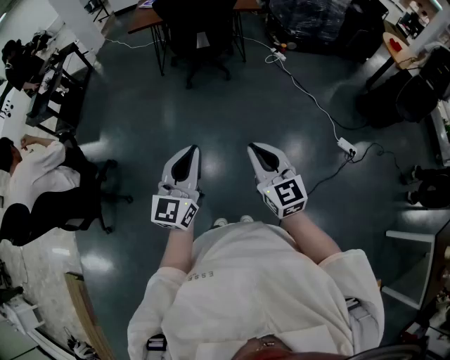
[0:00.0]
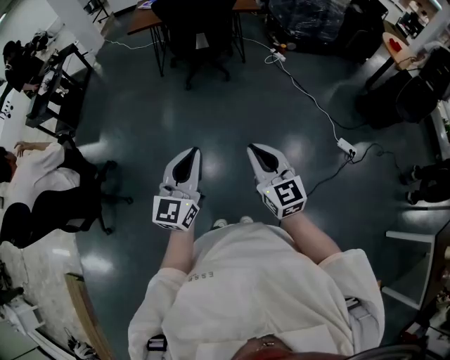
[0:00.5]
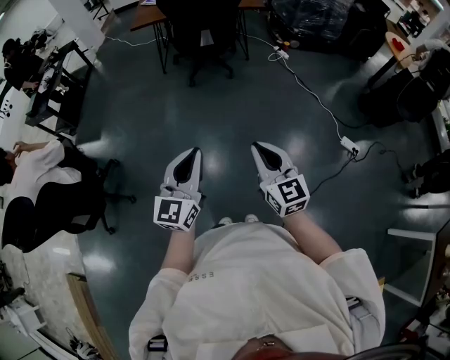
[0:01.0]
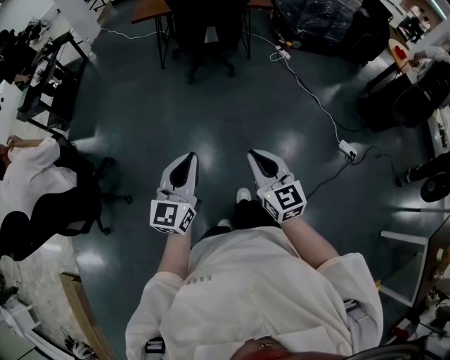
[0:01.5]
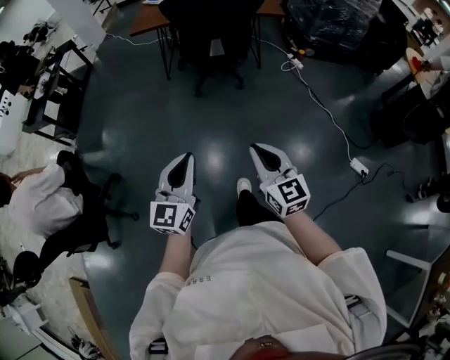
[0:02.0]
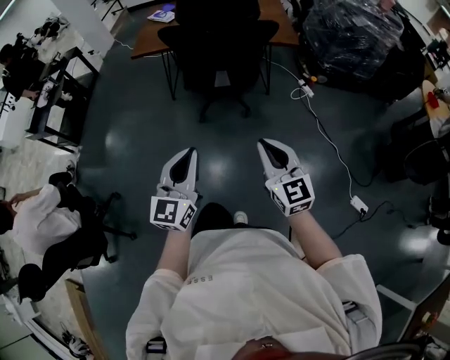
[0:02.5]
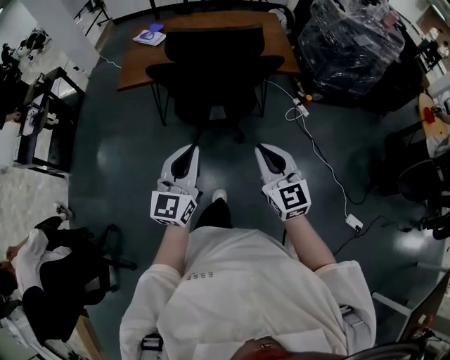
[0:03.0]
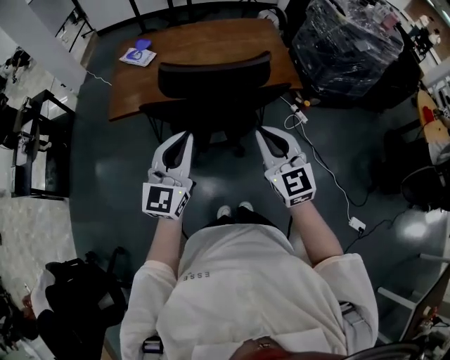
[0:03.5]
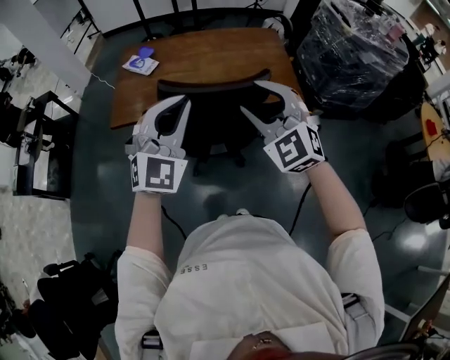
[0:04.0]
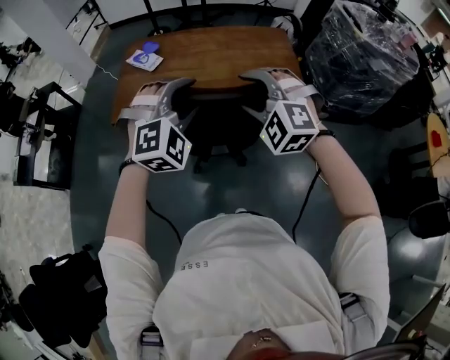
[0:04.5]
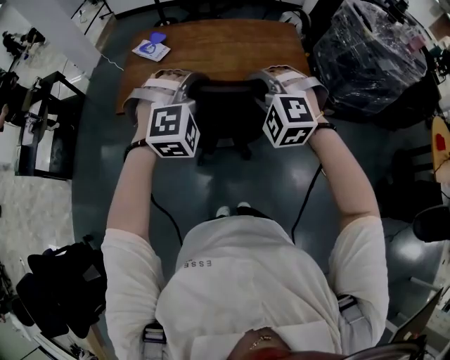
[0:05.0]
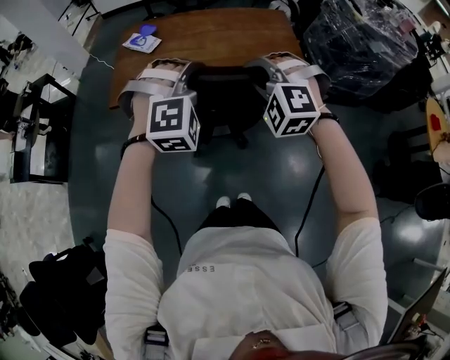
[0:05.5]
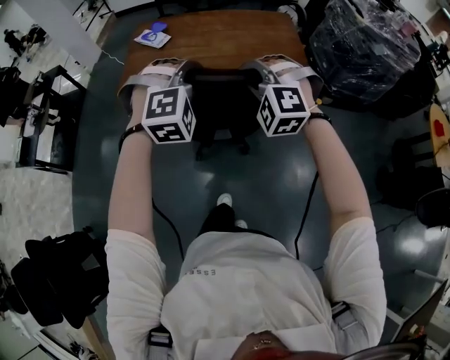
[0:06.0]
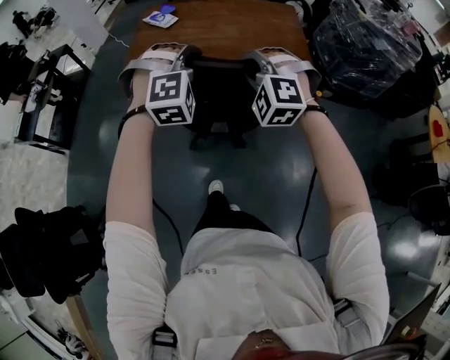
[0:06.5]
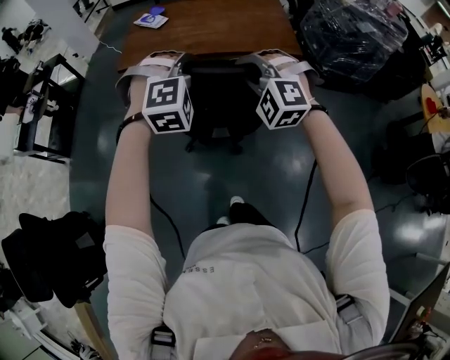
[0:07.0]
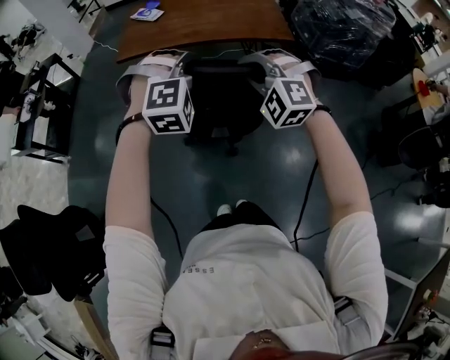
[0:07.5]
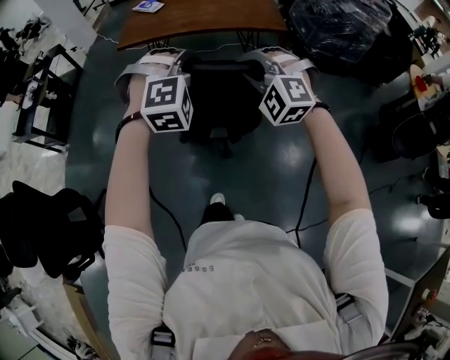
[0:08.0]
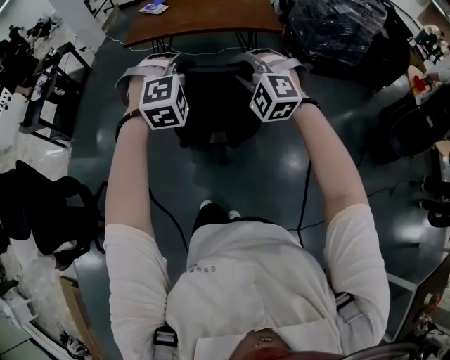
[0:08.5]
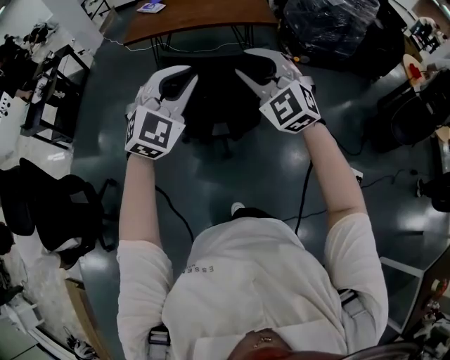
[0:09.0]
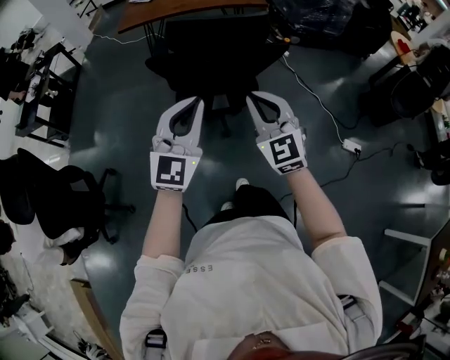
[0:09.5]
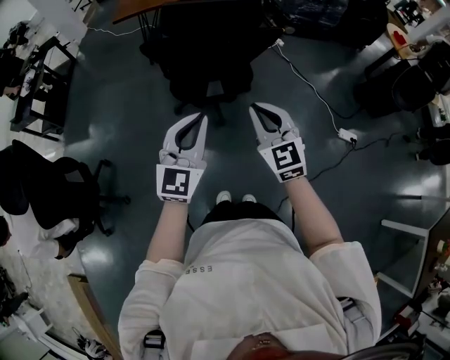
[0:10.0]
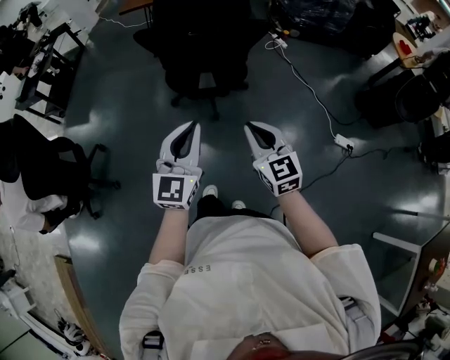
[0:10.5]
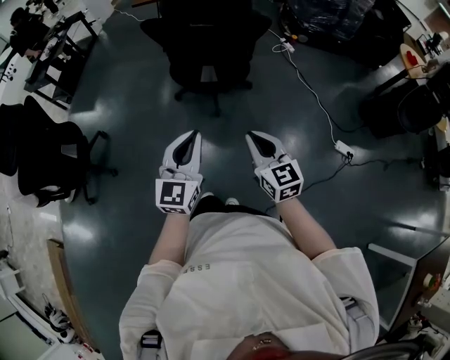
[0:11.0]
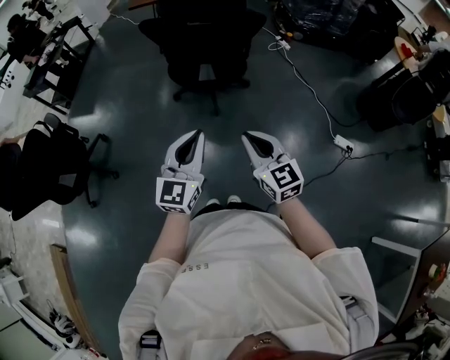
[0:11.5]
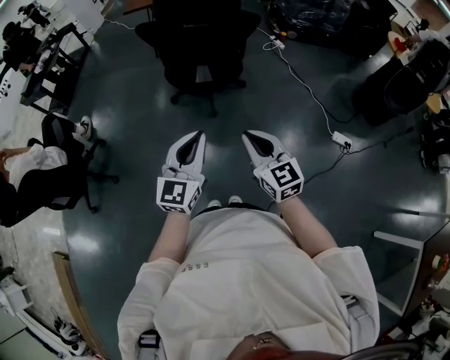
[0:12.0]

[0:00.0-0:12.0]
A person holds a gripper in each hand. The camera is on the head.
0:00.0 to 0:02.0: The two grippers go some 20 cm forward.
0:02.0 to 0:04.0: The two grippers travel together, forward, some 70 cm. The left gripper rolls clockwise, seen from behind, by approximately 50 degrees; the right gripper rolls counterclockwise, seen from behind, by some 50 degrees, and opens up.
0:04.0 to 0:06.0: The grippers both shift downward by some 5 cm. The right gripper rotates roughly 40 degrees, and closes. Meanwhile the left gripper points its fingers approximately 30 degrees further downward, and opens and closes again.
0:06.0 to 0:08.0: The grippers both shift backward by some 30 cm.
0:08.0 to 0:10.0: The grippers both shift backward by approximately 40 cm. The left gripper rotates around the line of its fingers by roughly 60 degrees, counterclockwise from behind. Meanwhile the right gripper rotates around the line of its fingers by about 60 degrees, clockwise from behind, and opens and closes again.
0:10.0 to 0:12.0: The right gripper goes about 20 cm backward, and changes its angle by some 20 degrees, while the left gripper travels backward and to the right by about 20 cm.

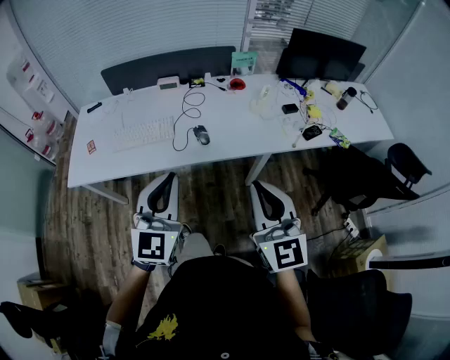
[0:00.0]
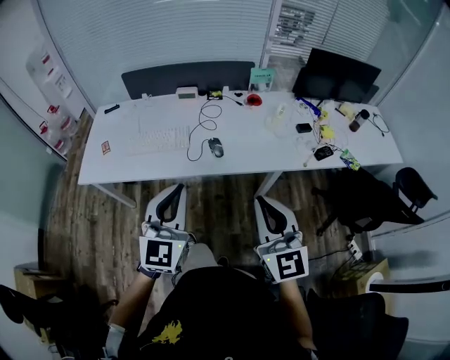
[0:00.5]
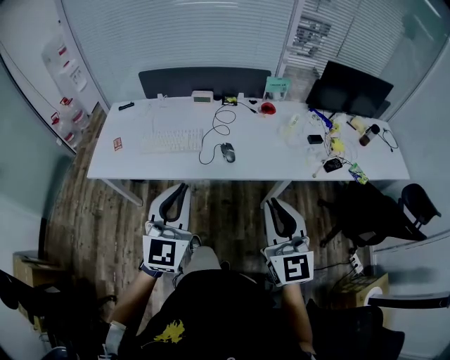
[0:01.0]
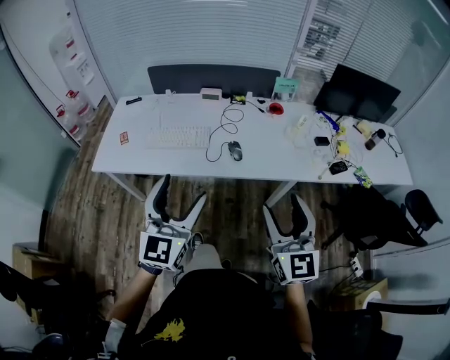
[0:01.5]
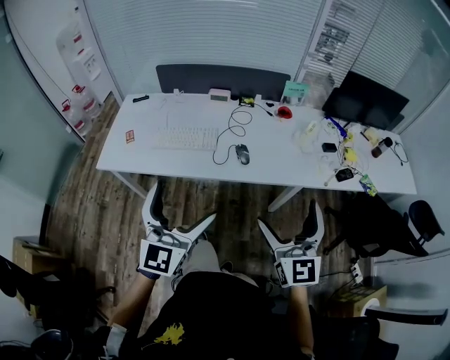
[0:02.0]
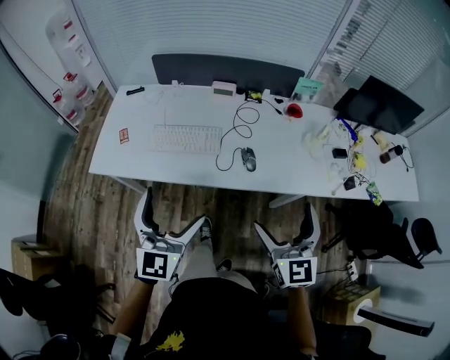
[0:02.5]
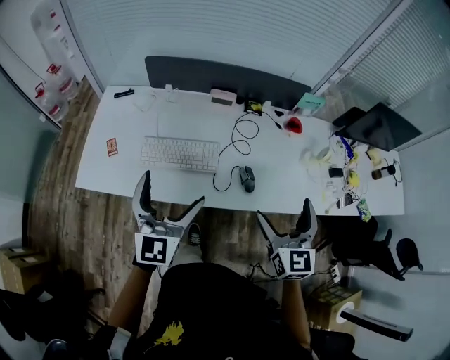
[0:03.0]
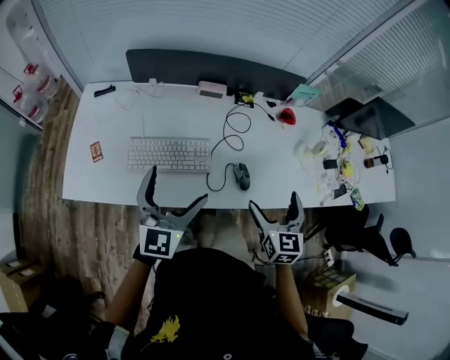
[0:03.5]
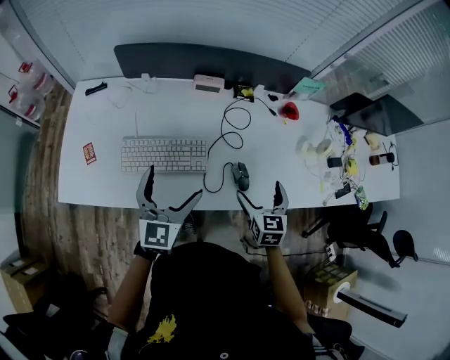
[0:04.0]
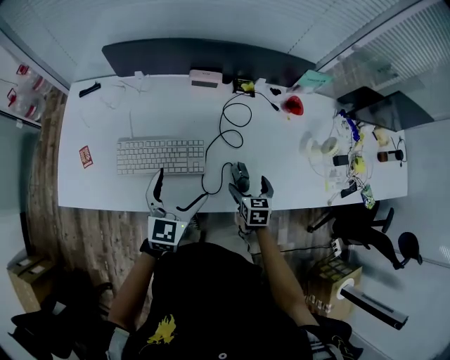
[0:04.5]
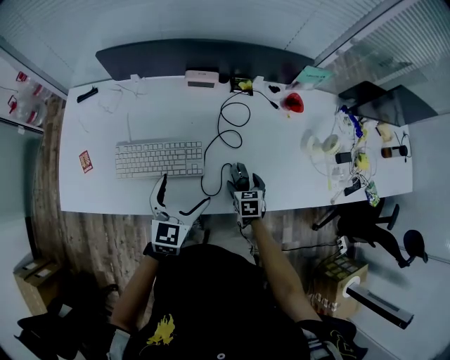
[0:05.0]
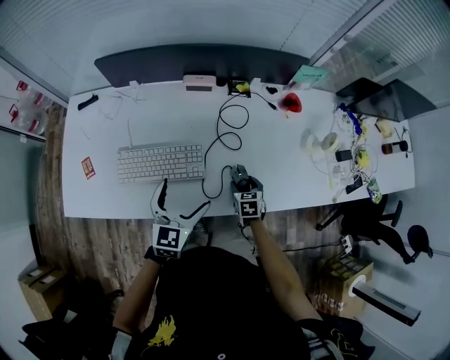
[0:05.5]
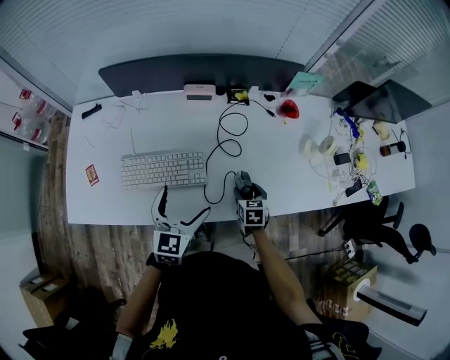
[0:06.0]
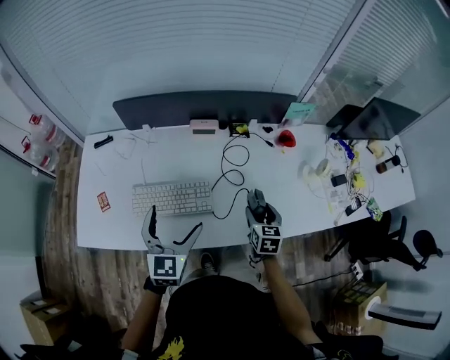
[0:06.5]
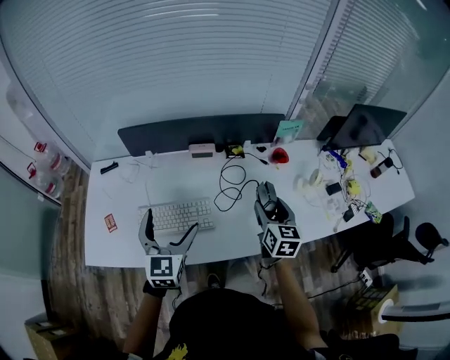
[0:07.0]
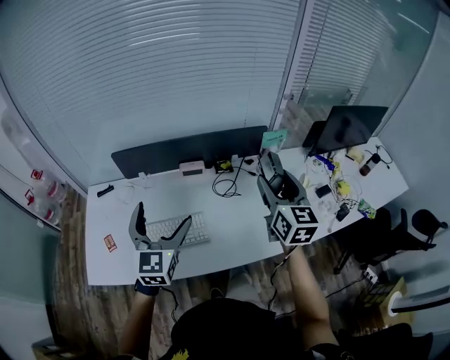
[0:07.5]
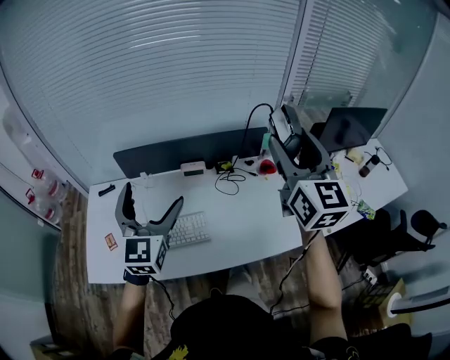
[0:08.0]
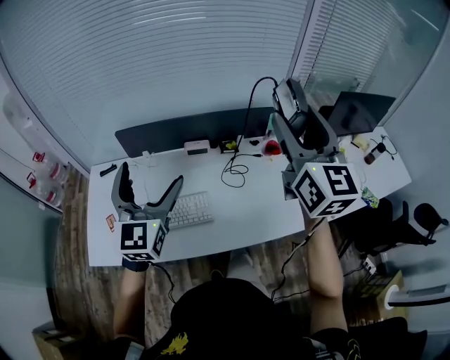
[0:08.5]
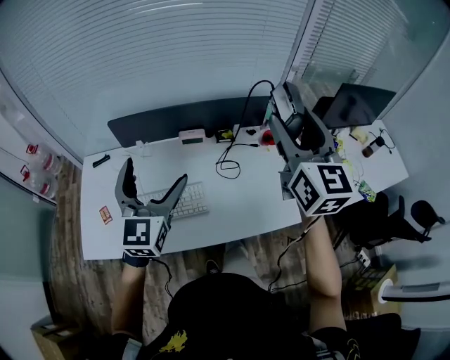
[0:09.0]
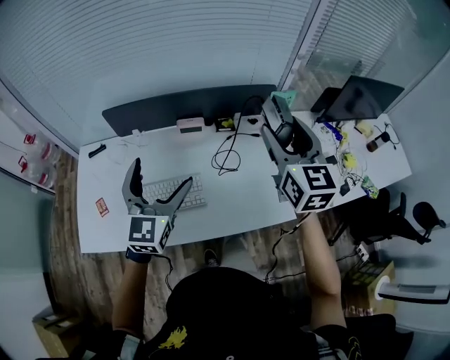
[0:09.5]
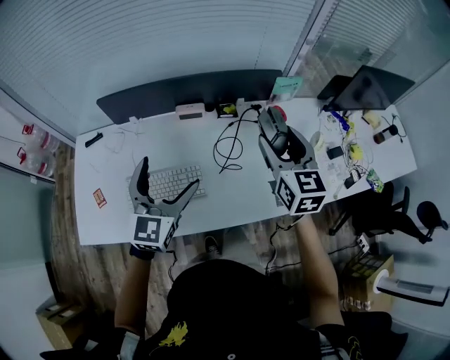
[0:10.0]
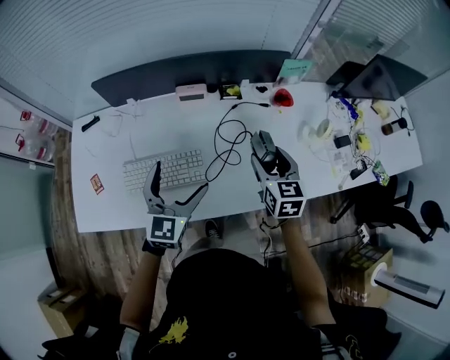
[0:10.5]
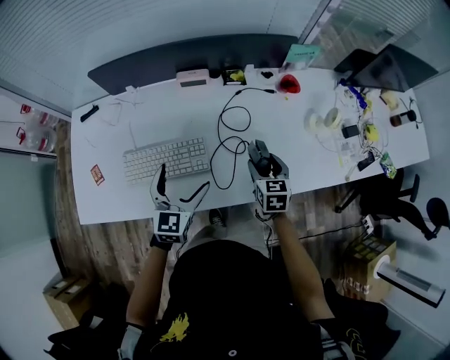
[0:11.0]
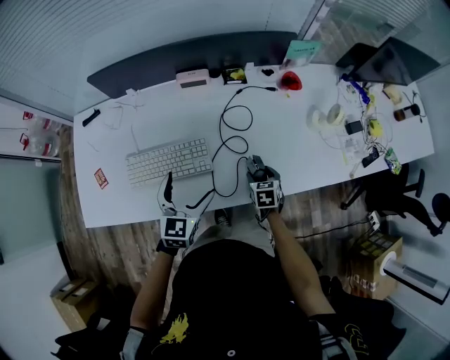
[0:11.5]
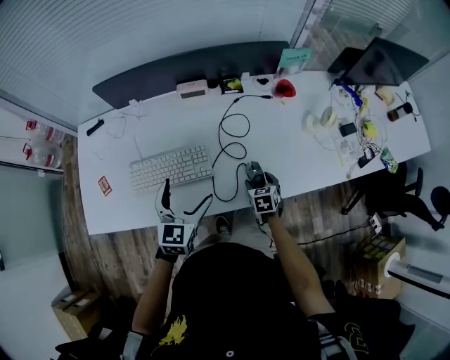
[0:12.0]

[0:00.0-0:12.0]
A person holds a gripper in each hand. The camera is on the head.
0:00.0 to 0:02.0: The right gripper opens its fingers; the left gripper shifts roughly 5 cm to the left, and opens up.
0:02.0 to 0:04.0: The two grippers travel together, forward, roughly 40 cm. Both grippers move downward, approximately 20 cm. The right gripper points its fingers about 40 degrees further downward.
0:04.0 to 0:06.0: The right gripper moves downward, approximately 15 cm, and closes up, while the left gripper moves downward and to the right, roughly 10 cm.
0:06.0 to 0:08.0: The left gripper moves upward, approximately 30 cm, and turns by about 30 degrees. The right gripper is displaced upward by approximately 60 cm, and angles its fingers upward, by approximately 60 degrees.
0:08.0 to 0:10.0: The left gripper heads downward, covering roughly 15 cm. Meanwhile the right gripper heads downward, covering roughly 25 cm, and turns by approximately 20 degrees.
0:10.0 to 0:12.0: The left gripper shifts roughly 15 cm downward, while the right gripper shifts roughly 40 cm downward, and tips its fingers downward by some 40 degrees.

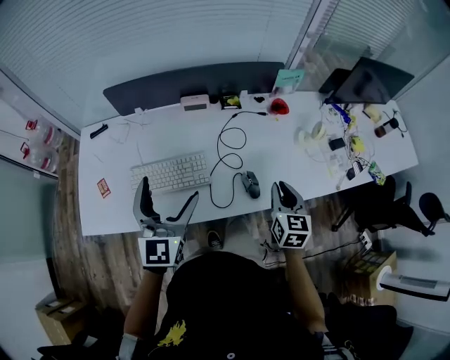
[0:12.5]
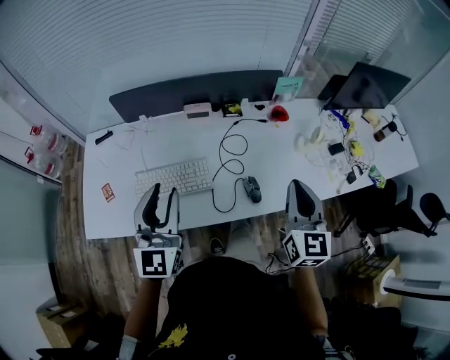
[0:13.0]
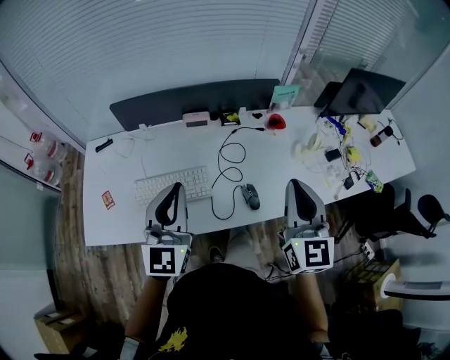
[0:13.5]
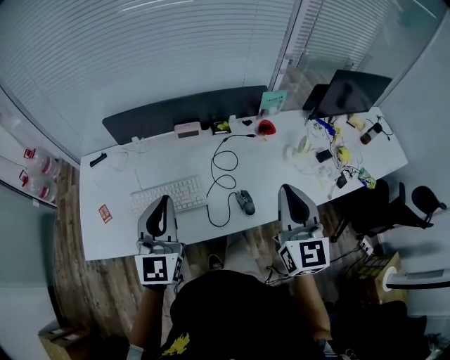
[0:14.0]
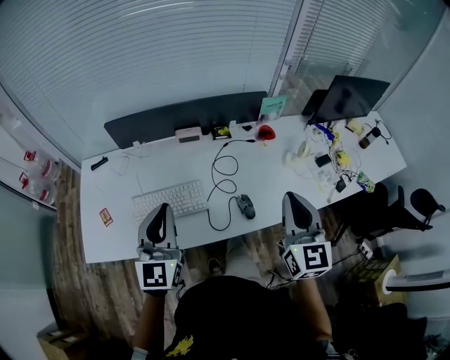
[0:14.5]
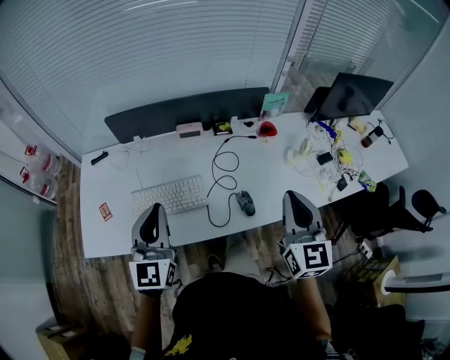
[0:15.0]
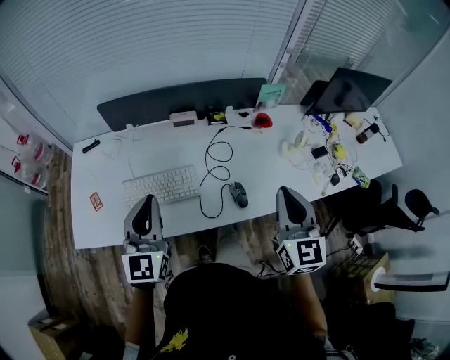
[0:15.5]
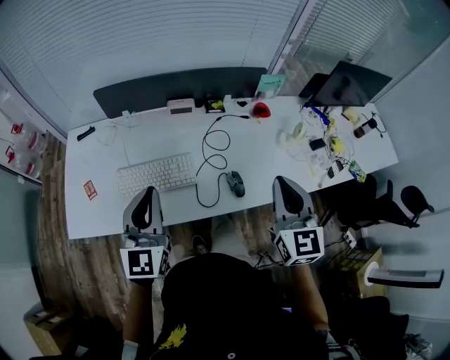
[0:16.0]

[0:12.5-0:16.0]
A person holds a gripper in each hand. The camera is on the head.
0:12.5 to 0:14.5: The left gripper travels upward by some 5 cm, and closes up, while the right gripper heads upward, covering approximately 20 cm, and swivels some 20 degrees.
0:14.5 to 0:16.0: There are only small adjustments of the grippers.
